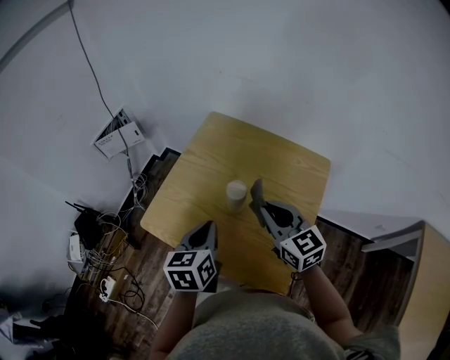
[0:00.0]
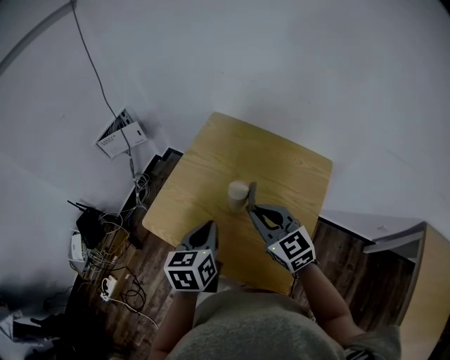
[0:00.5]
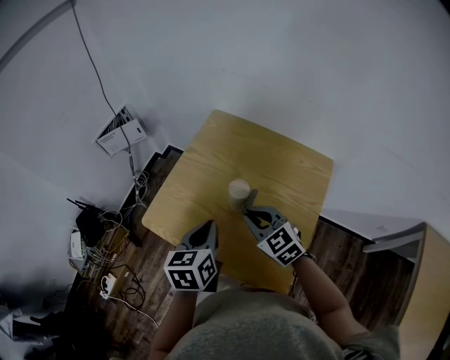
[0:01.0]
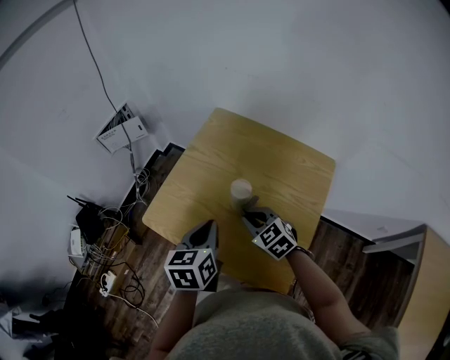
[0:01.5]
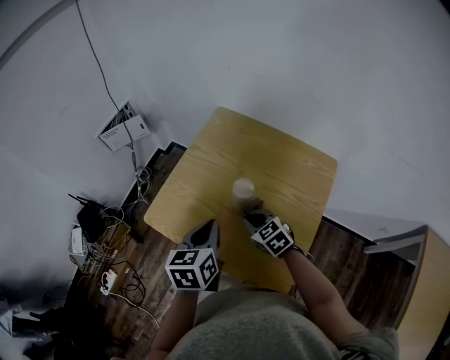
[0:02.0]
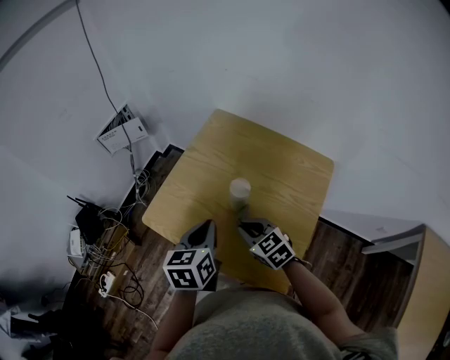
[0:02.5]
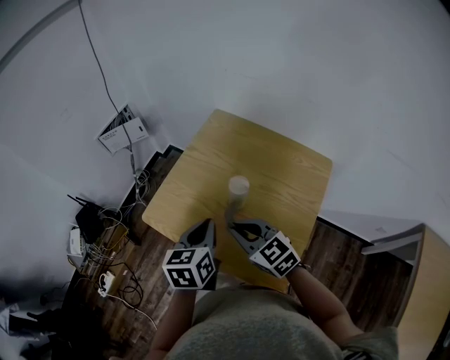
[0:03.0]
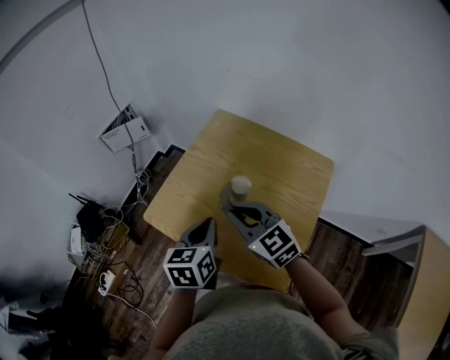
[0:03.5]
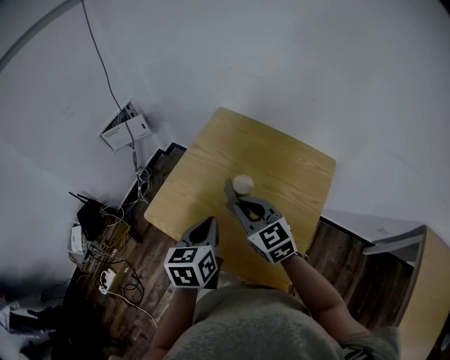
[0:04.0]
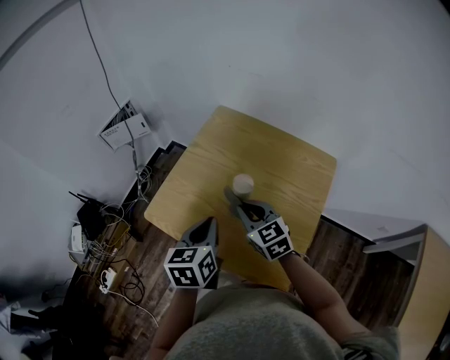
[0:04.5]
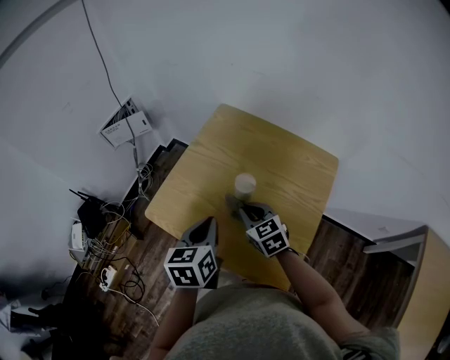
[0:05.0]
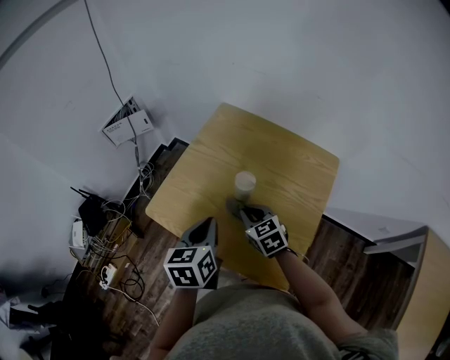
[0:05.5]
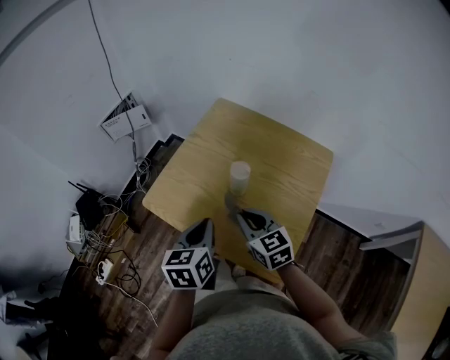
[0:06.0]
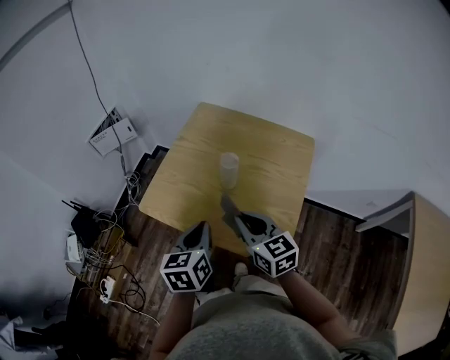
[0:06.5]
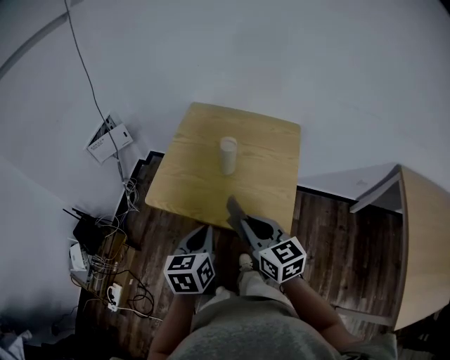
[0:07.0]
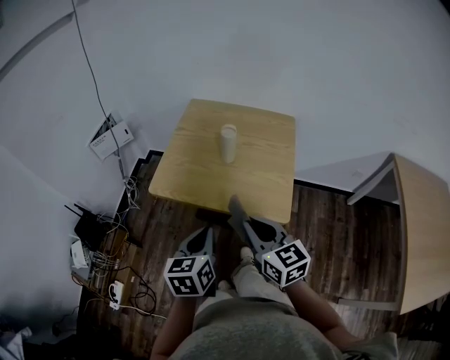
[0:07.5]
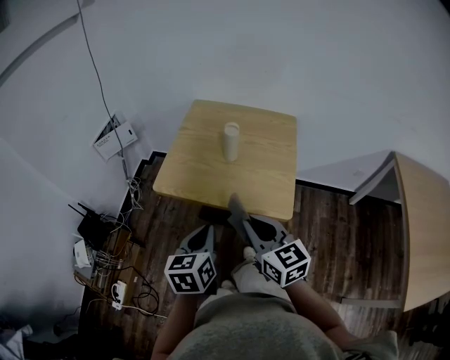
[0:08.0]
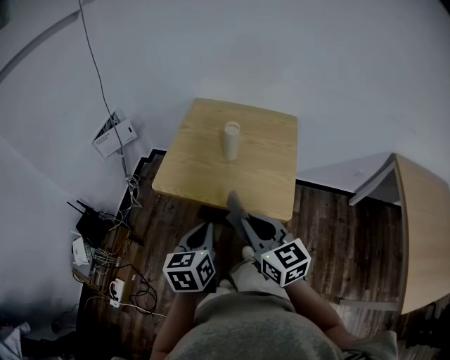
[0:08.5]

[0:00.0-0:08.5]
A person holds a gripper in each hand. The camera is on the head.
0:00.0 to 0:02.0: The right gripper travels downward by roughly 15 cm, and changes its angle by some 30 degrees.
0:02.0 to 0:04.0: The right gripper goes approximately 15 cm upward, and changes its angle by about 20 degrees.
0:04.0 to 0:06.5: Both grippers move backward, approximately 10 cm.
0:06.5 to 0:08.5: Both grippers travel together backward, some 15 cm.

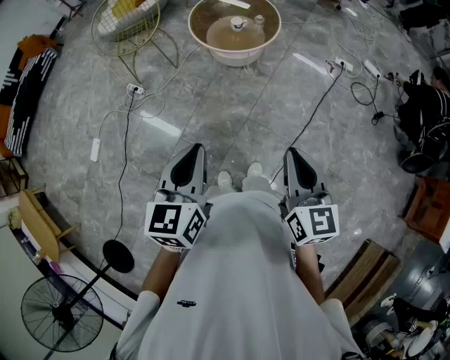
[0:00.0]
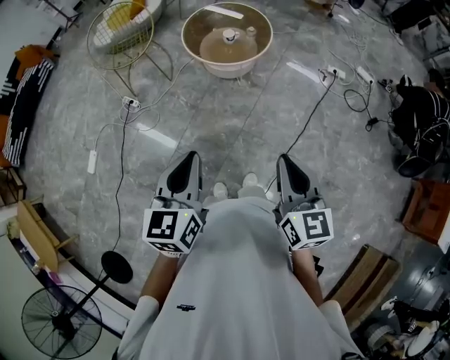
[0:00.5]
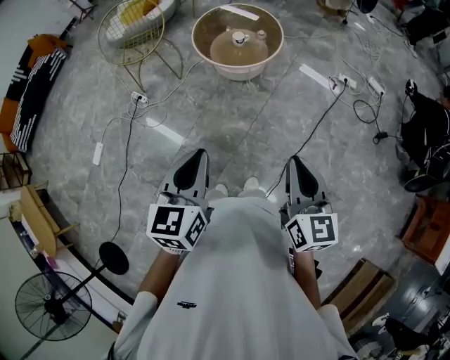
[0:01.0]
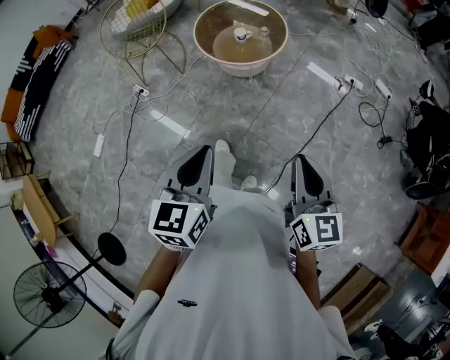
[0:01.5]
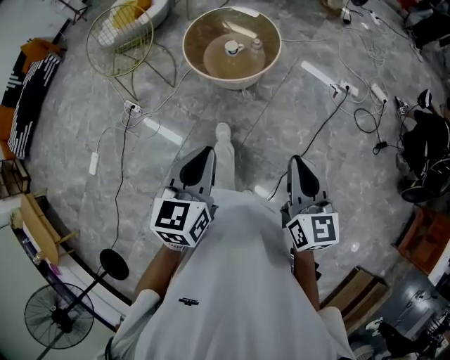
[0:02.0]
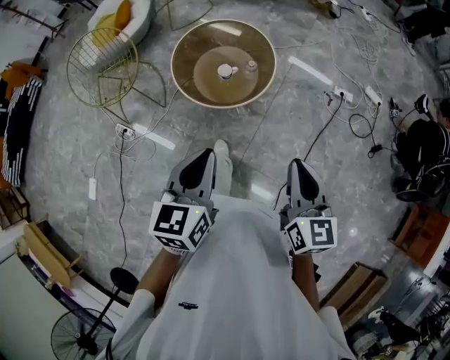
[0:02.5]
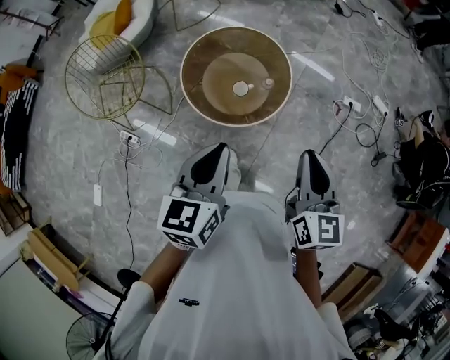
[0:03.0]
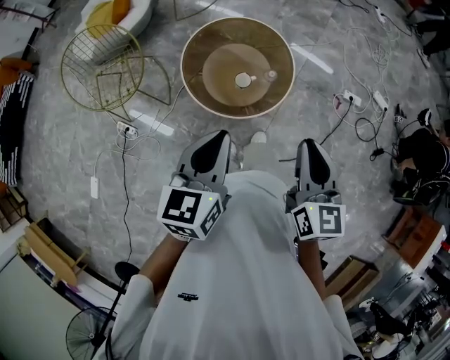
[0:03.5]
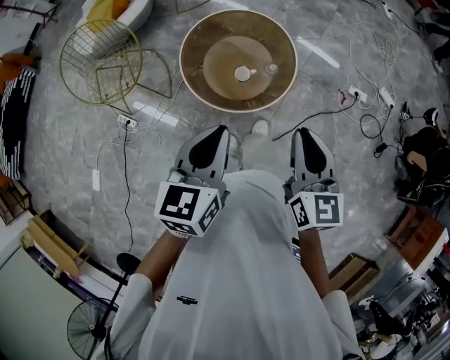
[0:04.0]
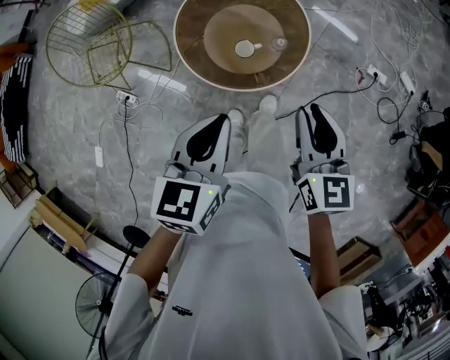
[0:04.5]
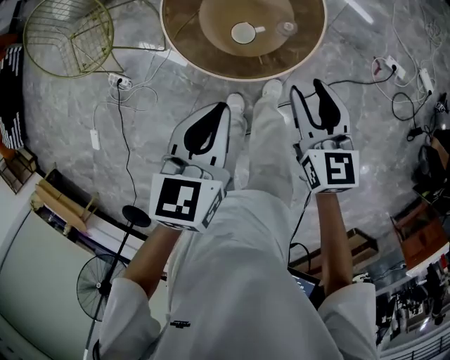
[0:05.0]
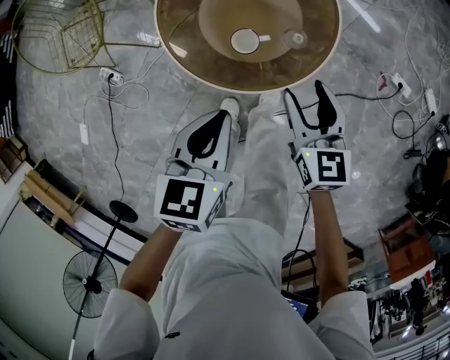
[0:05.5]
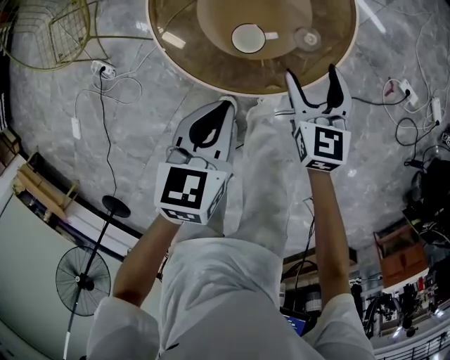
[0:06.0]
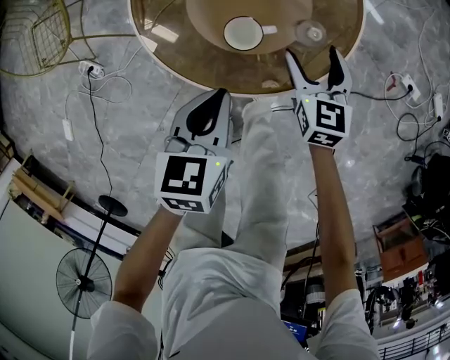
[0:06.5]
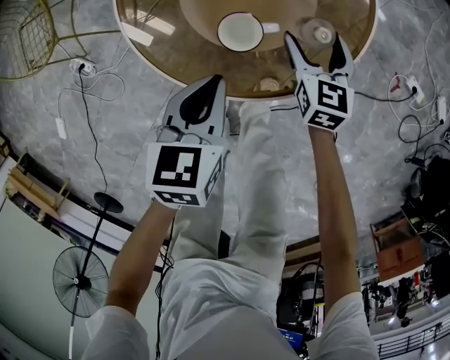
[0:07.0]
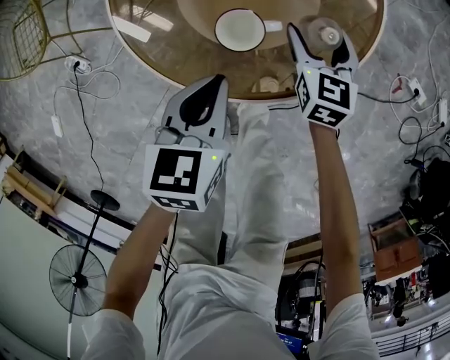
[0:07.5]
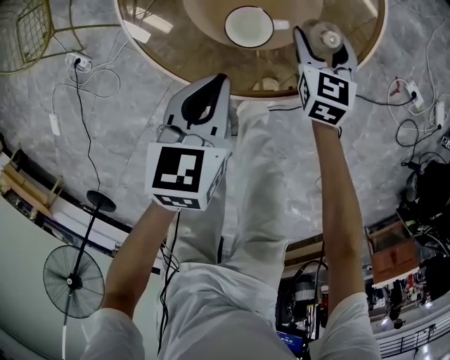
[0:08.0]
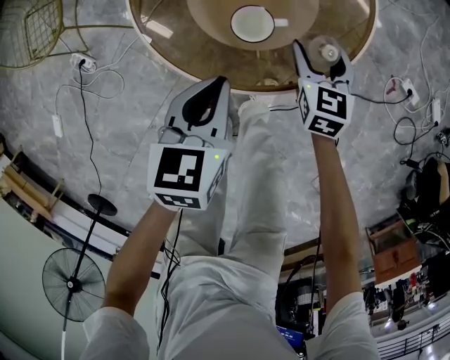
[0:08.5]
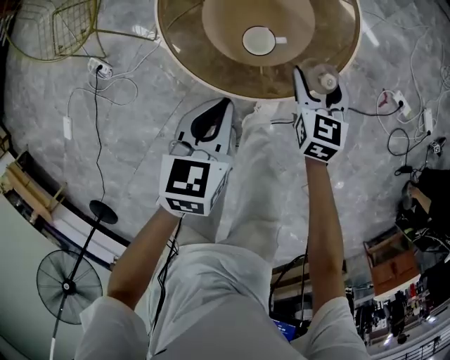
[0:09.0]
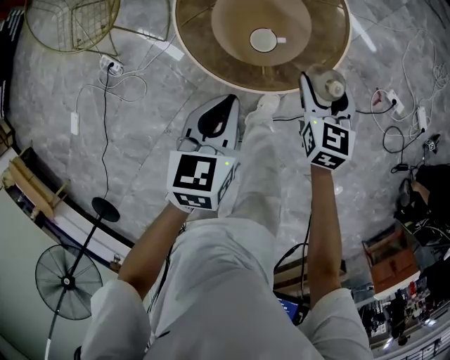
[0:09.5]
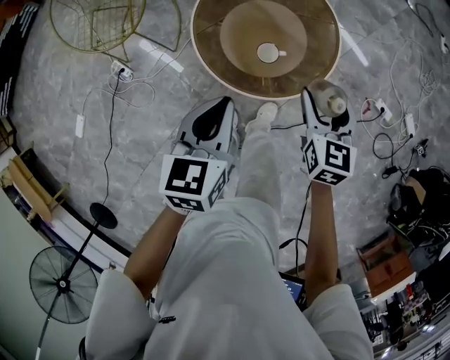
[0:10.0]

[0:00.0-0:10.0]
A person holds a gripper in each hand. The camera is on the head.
0:00.0 to 0:02.0: Both grippers move forward and to the right, roughly 20 cm.
0:02.0 to 0:04.0: Both grippers move forward, approximately 35 cm.
0:04.0 to 0:06.0: The left gripper travels downward by some 35 cm, and rotates roughly 20 degrees. The right gripper is displaced downward and forward by roughly 40 cm, and opens up.
0:06.0 to 0:08.0: The right gripper goes approximately 15 cm downward and forward, while the left gripper moves downward, roughly 10 cm.
0:08.0 to 0:10.0: Both grippers move upward, roughly 30 cm.

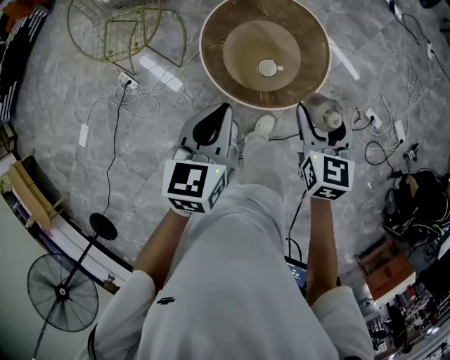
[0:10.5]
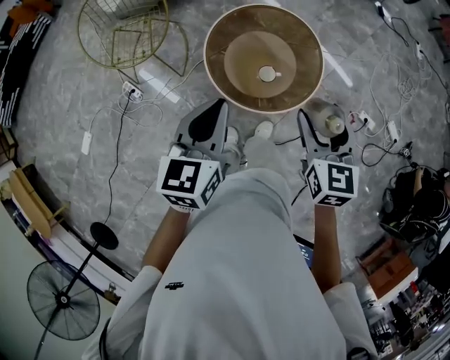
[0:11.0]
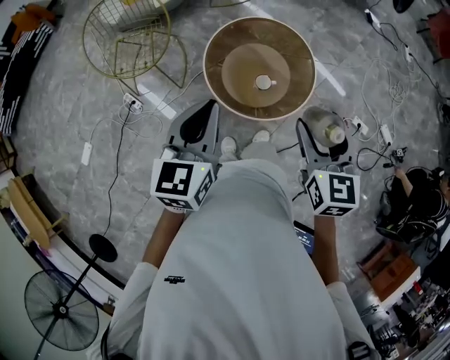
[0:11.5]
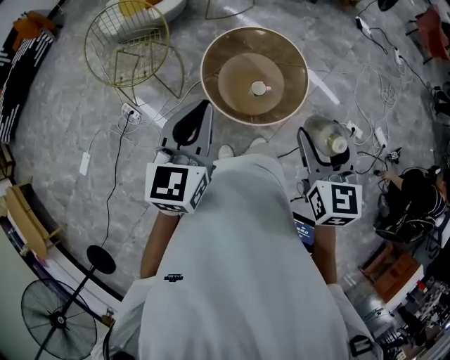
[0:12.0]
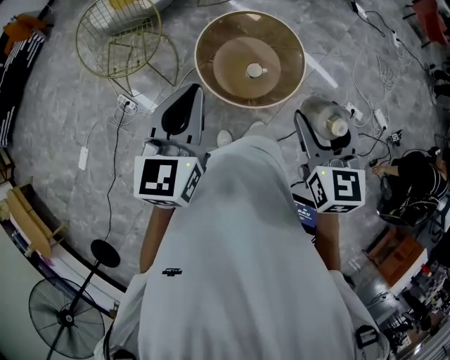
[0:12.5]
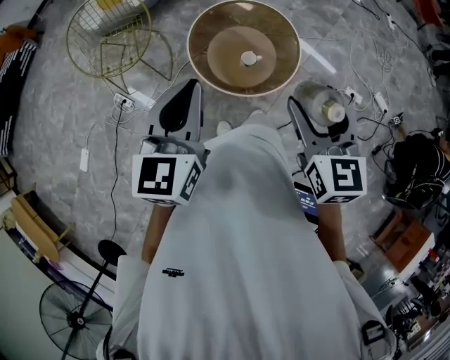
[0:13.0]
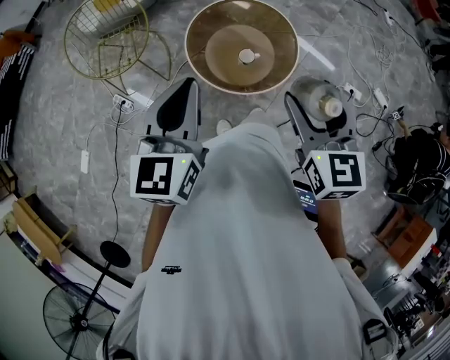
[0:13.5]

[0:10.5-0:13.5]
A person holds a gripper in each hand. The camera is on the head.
0:10.5 to 0:12.0: The left gripper heads upward and to the left, covering some 15 cm. The right gripper travels upward and backward by roughly 20 cm.
0:12.0 to 0:13.5: The grippers stay close to where they were, moving slightly.

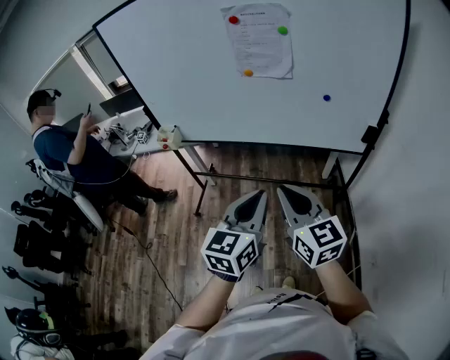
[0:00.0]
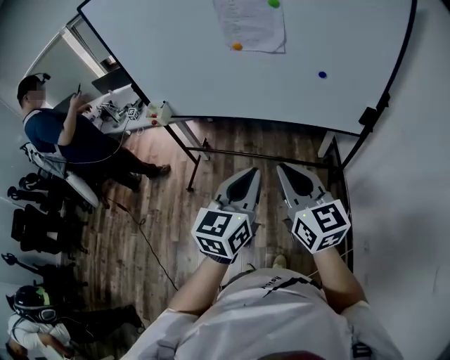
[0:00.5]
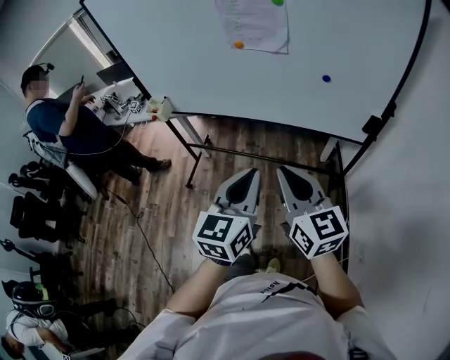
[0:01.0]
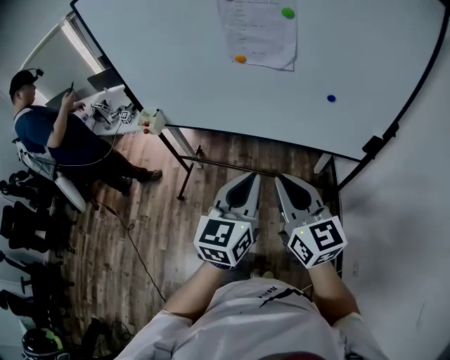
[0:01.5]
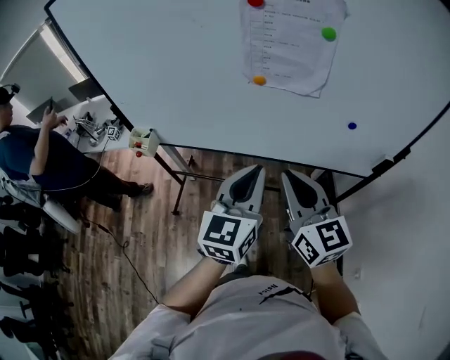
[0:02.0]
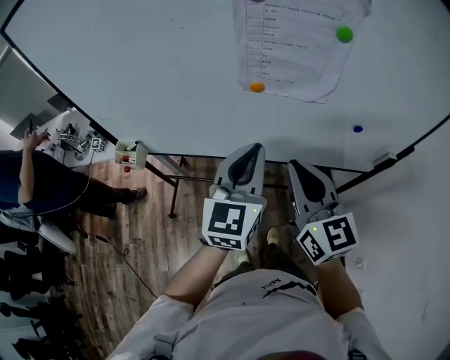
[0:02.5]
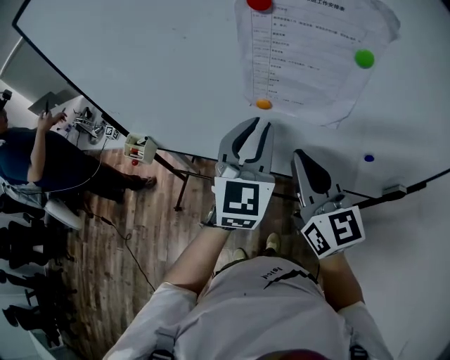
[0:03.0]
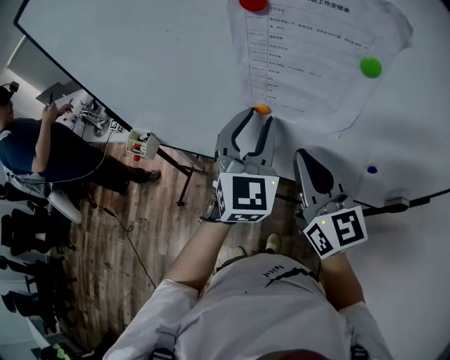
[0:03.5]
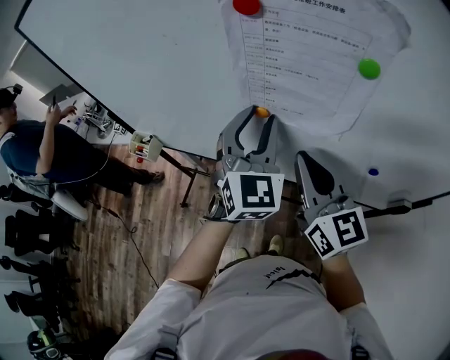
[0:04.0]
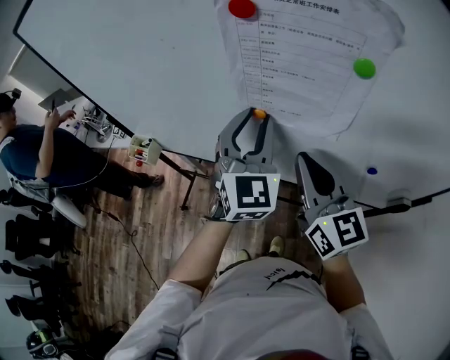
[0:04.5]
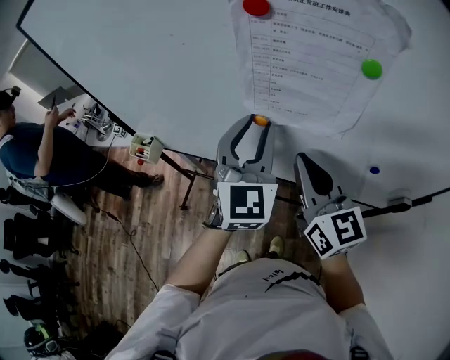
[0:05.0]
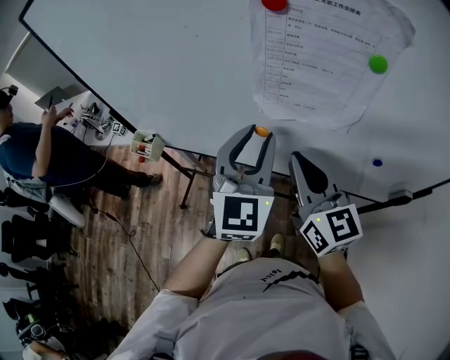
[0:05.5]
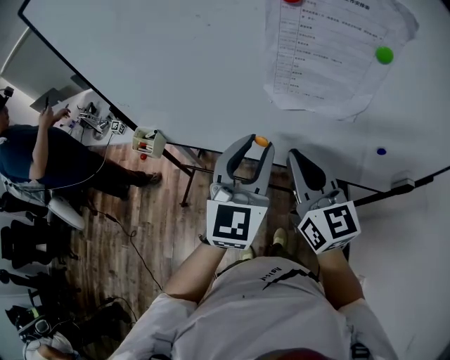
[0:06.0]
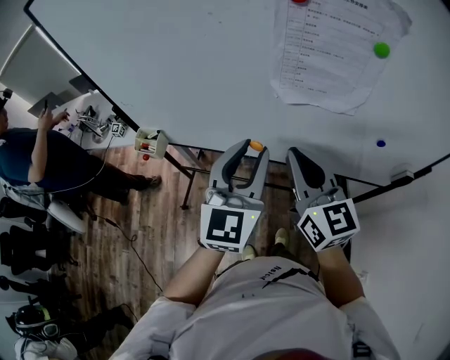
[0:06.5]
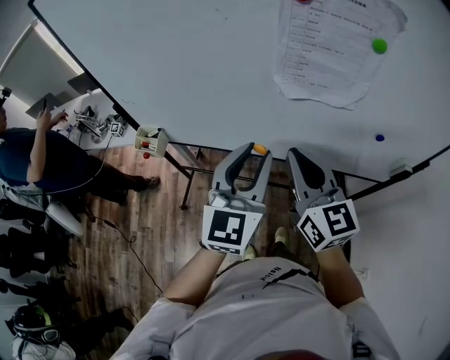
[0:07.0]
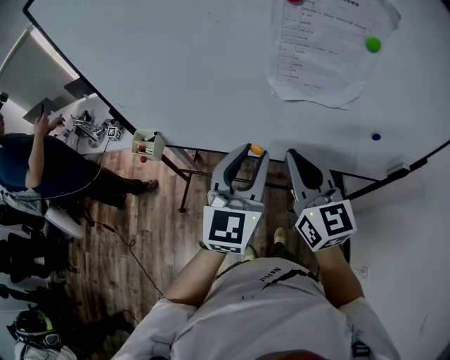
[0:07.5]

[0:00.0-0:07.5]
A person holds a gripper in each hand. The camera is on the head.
0:00.0 to 0:02.0: The grippers both shift forward by approximately 25 cm.
0:02.0 to 0:04.0: Both grippers move forward, approximately 20 cm. The left gripper turns by some 40 degrees, and opens up.
0:04.0 to 0:05.5: The left gripper moves backward, roughly 5 cm.
0:05.5 to 0:07.5: The right gripper changes place by about 5 cm. Meanwhile the left gripper heads backward and to the left, covering approximately 10 cm.
